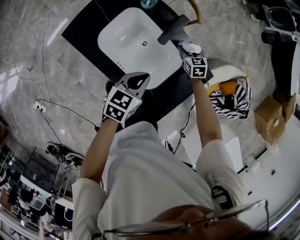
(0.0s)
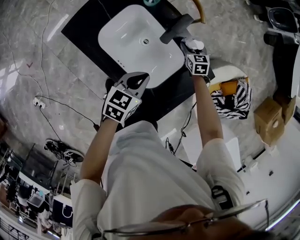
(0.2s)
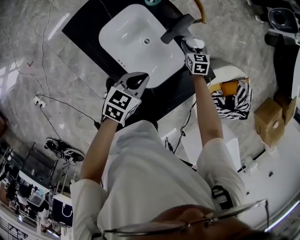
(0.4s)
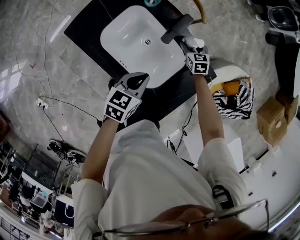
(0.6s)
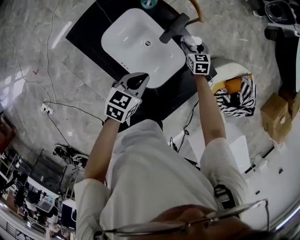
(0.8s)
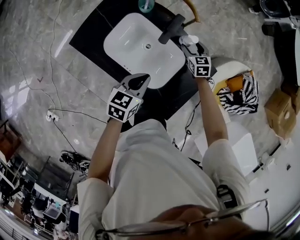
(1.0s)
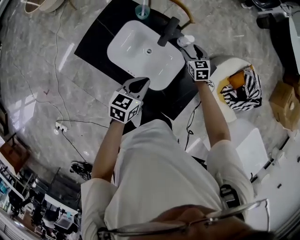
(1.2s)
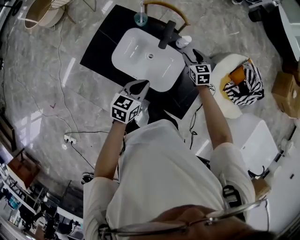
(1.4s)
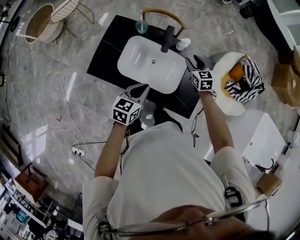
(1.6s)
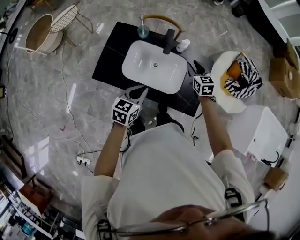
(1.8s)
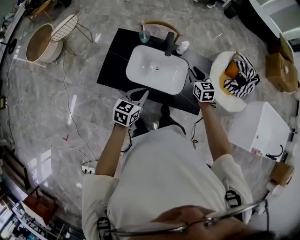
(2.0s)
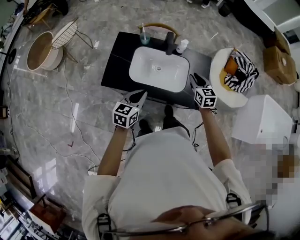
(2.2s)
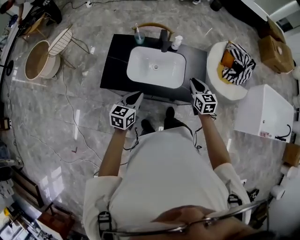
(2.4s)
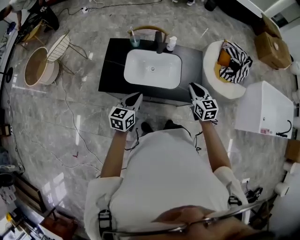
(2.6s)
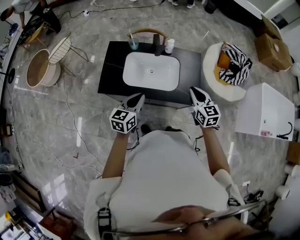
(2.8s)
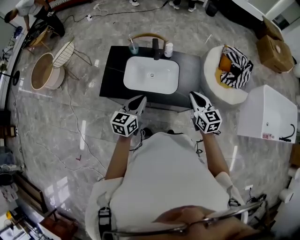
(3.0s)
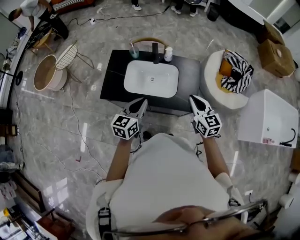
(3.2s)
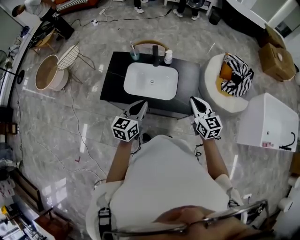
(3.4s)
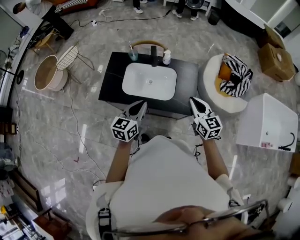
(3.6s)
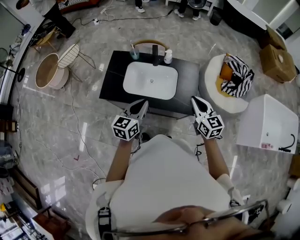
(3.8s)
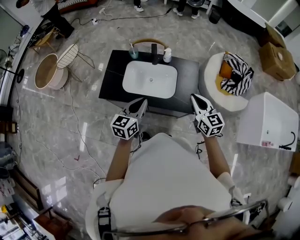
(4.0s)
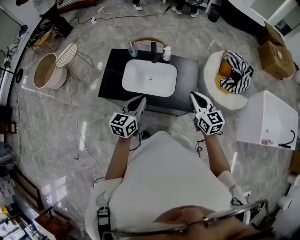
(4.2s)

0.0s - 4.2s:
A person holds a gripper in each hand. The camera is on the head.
0.0s - 1.4s: The left gripper goes some 5 cm upward, while the right gripper shifts roughly 15 cm upward and backward.
1.4s - 2.8s: The right gripper is displaced backward and upward by some 35 cm, swivels approximately 30 degrees, and closes up; the left gripper moves backward, upward and to the left, about 20 cm.
2.8s - 4.2s: The right gripper heads upward, covering approximately 5 cm; the left gripper moves upward and to the right, roughly 10 cm.

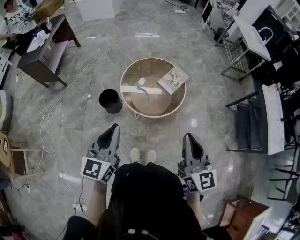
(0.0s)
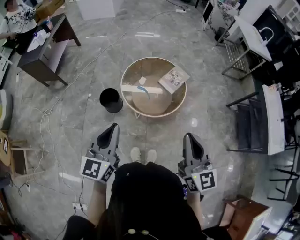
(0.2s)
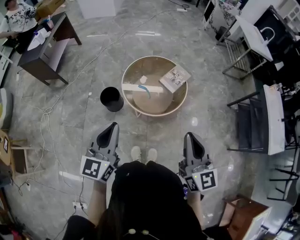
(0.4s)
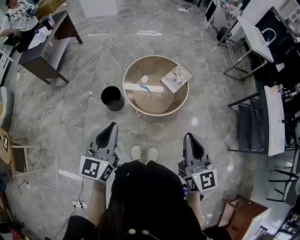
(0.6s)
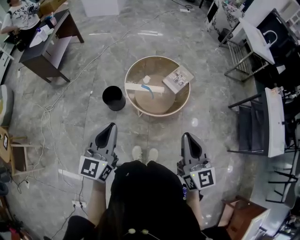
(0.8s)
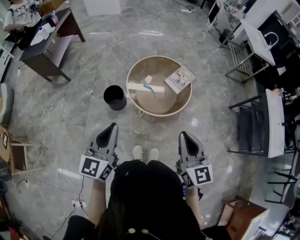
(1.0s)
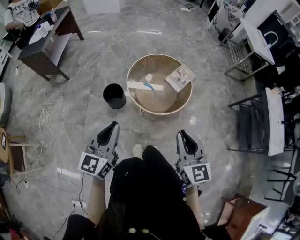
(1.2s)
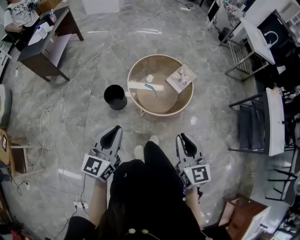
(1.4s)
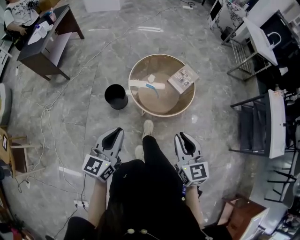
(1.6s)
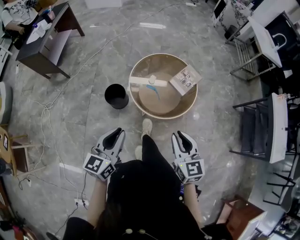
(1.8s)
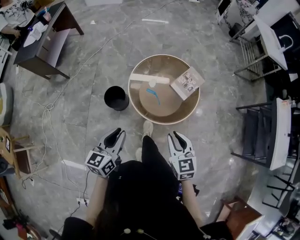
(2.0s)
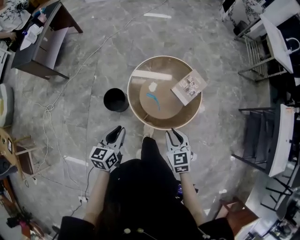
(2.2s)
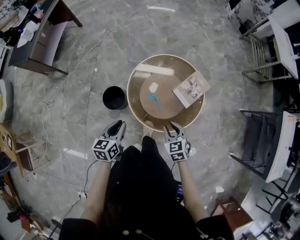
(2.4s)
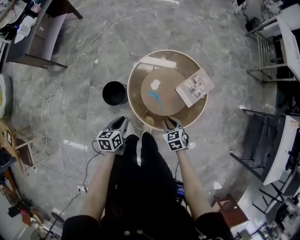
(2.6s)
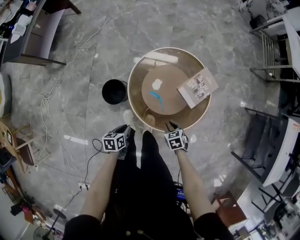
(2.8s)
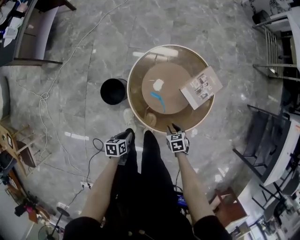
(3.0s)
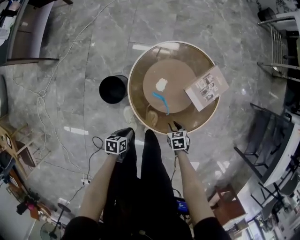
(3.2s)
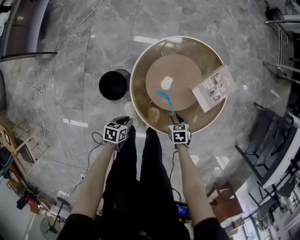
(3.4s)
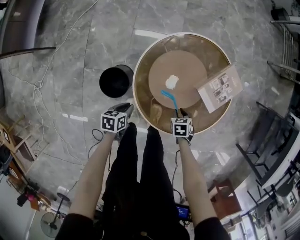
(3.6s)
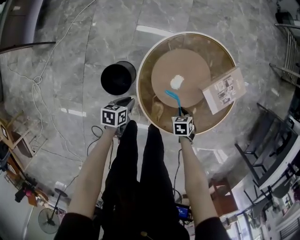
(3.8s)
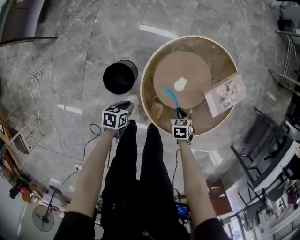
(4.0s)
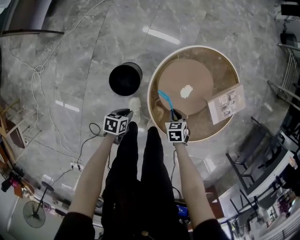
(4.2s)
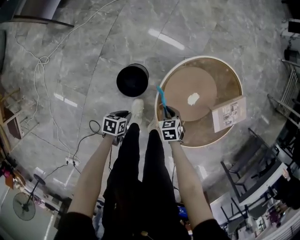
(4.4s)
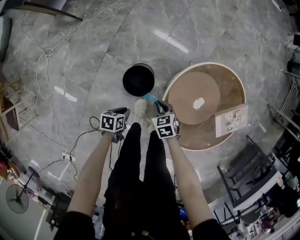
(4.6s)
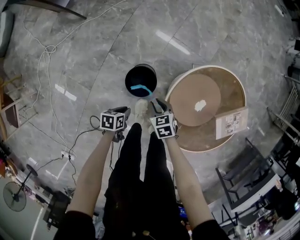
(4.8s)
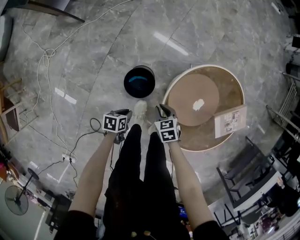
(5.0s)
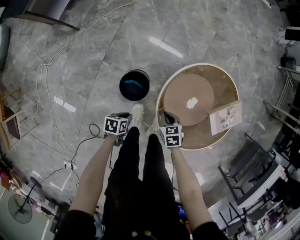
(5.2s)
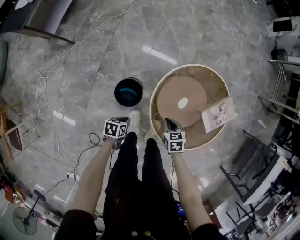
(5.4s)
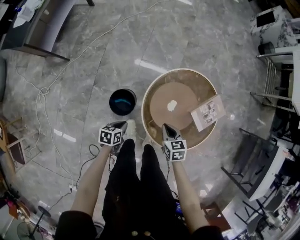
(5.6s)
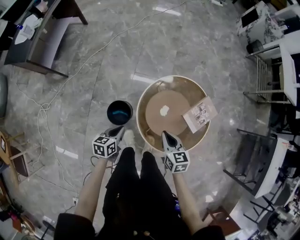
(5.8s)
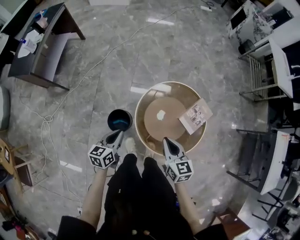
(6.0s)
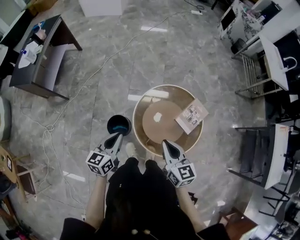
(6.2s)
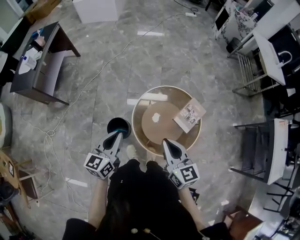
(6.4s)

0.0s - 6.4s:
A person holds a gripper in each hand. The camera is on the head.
0.0s - 1.6s: Both grippers travel together downward and to the left, about 10 cm.
1.6s - 3.2s: The right gripper moves downward and forward, about 50 cm, and points its fingers approximately 50 degrees further downward; the left gripper shifts some 50 cm downward, and angles its fingers downward, by approximately 50 degrees.
3.2s - 4.8s: The right gripper shifts by approximately 35 cm, and rotates approximately 30 degrees. Meanwhile the left gripper shifts by about 20 cm, and swivels approximately 20 degrees.
4.8s - 6.4s: The left gripper travels upward by about 50 cm, and tilts its fingers roughly 50 degrees upward. The right gripper goes approximately 50 cm upward and to the right, tilts its fingers some 40 degrees upward, and closes up.

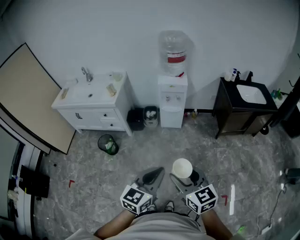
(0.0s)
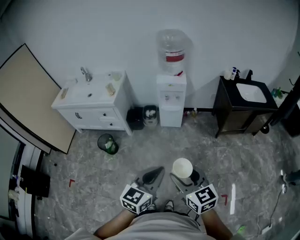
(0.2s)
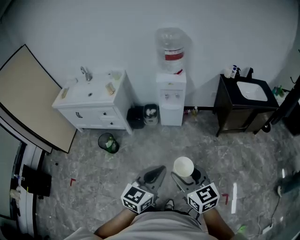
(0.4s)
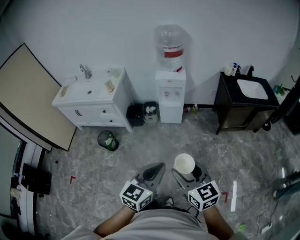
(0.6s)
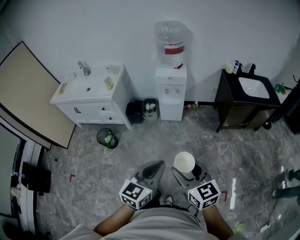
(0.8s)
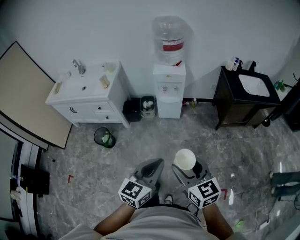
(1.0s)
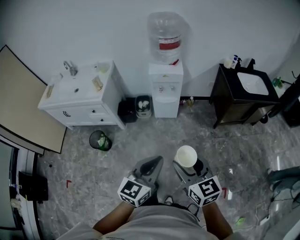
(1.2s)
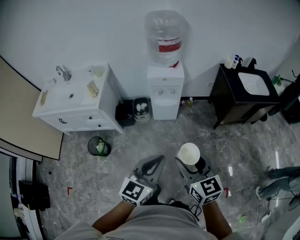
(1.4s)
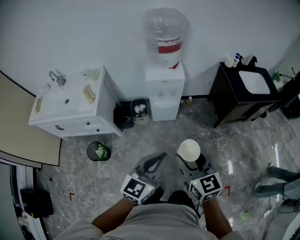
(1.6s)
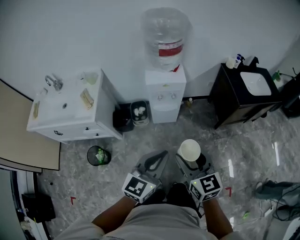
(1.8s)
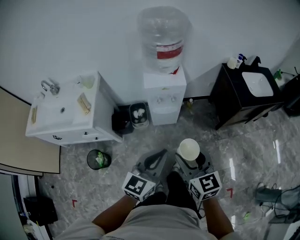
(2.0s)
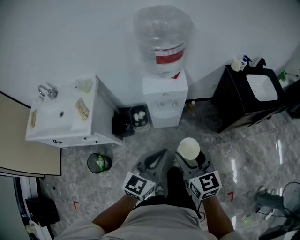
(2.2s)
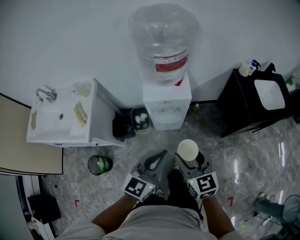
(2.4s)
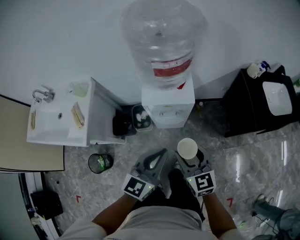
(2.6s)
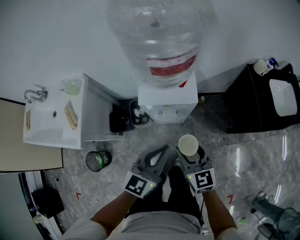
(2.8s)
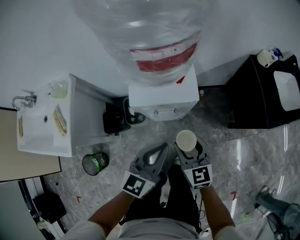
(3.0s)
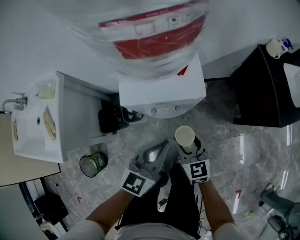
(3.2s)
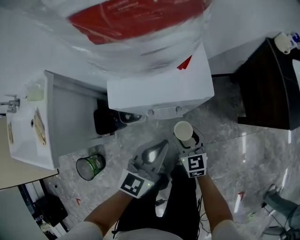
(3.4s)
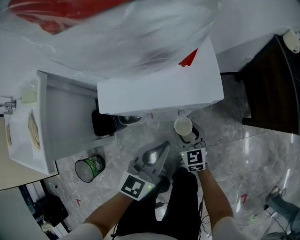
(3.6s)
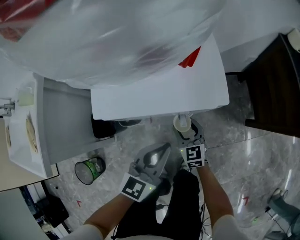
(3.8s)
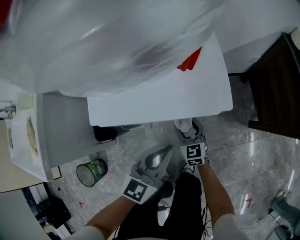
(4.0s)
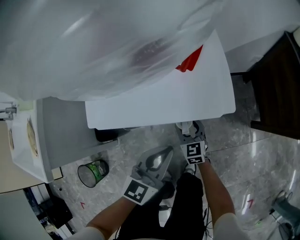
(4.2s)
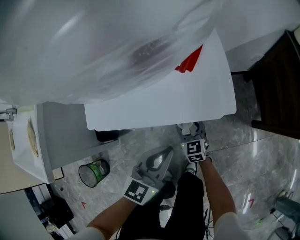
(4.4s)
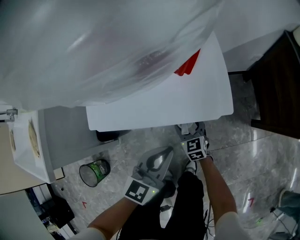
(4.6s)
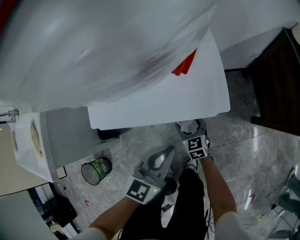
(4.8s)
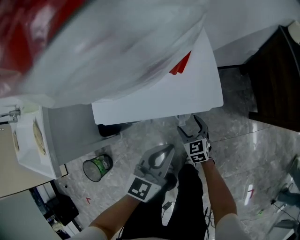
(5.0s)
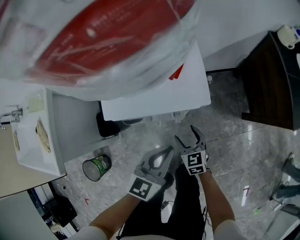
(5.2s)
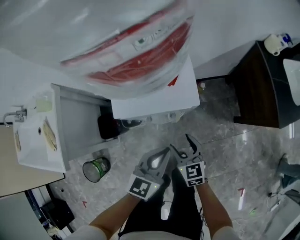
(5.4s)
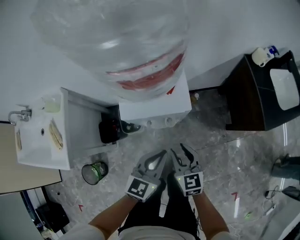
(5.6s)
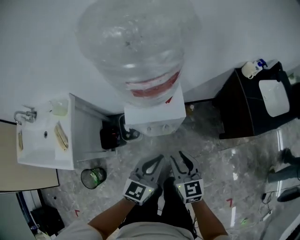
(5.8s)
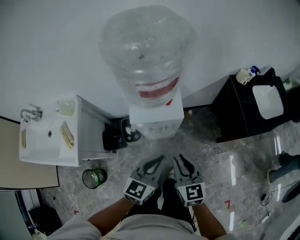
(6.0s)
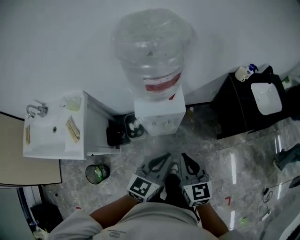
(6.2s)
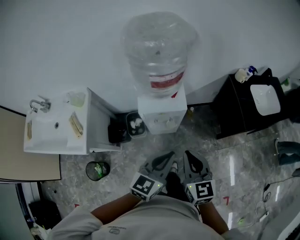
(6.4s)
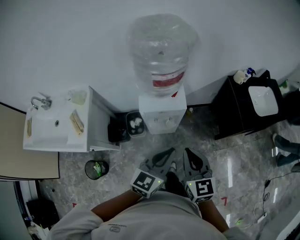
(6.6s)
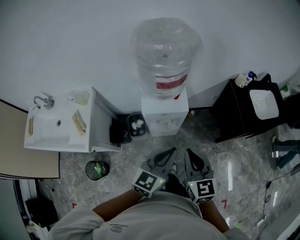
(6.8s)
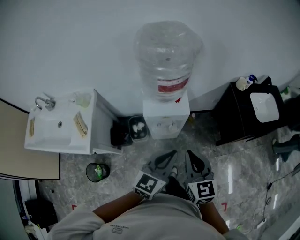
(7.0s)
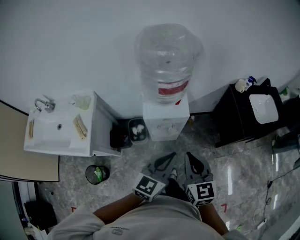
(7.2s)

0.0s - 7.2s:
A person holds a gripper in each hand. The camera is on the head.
0.0s - 1.4s: Both grippers travel together forward, some 25 cm.
1.4s - 2.8s: The two grippers travel together, forward, approximately 40 cm.
2.8s - 4.4s: Both grippers move downward, some 40 cm.
4.4s - 5.8s: The right gripper goes about 40 cm upward, and closes up. The left gripper is displaced upward by about 25 cm.
5.8s - 7.2s: Both grippers move upward and backward, about 20 cm. The right gripper closes up.

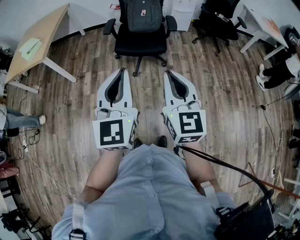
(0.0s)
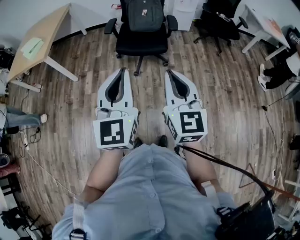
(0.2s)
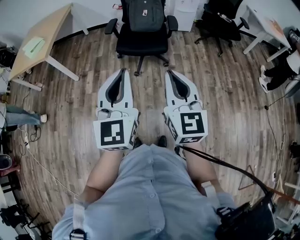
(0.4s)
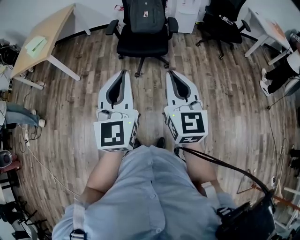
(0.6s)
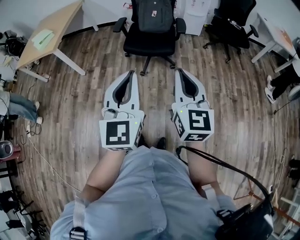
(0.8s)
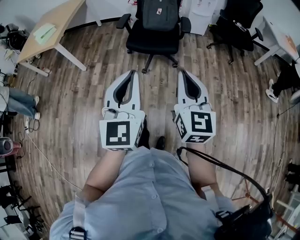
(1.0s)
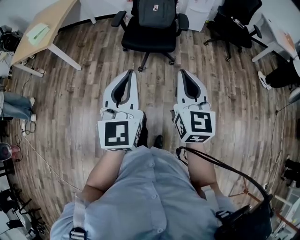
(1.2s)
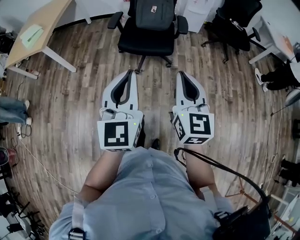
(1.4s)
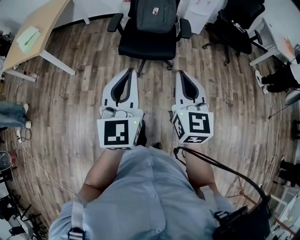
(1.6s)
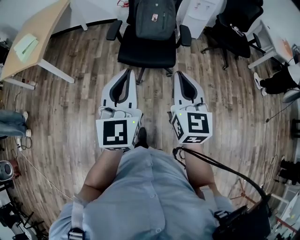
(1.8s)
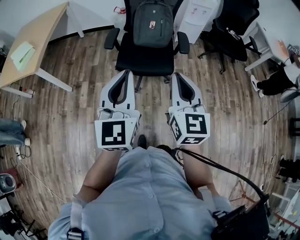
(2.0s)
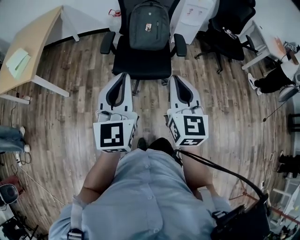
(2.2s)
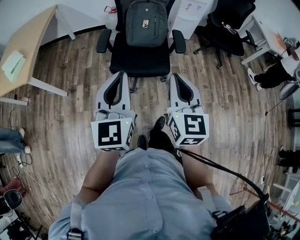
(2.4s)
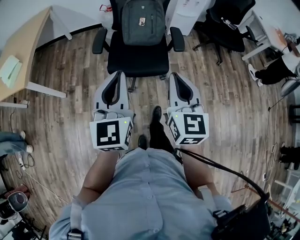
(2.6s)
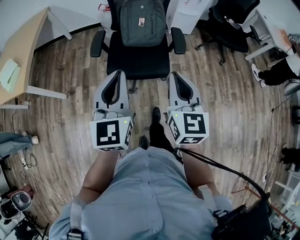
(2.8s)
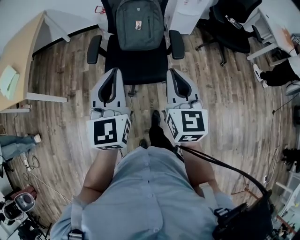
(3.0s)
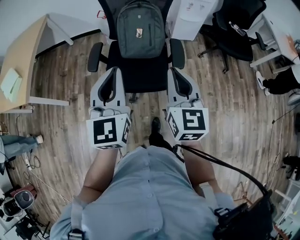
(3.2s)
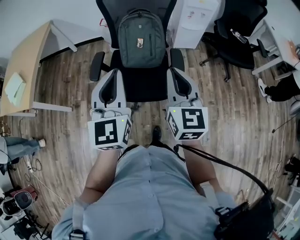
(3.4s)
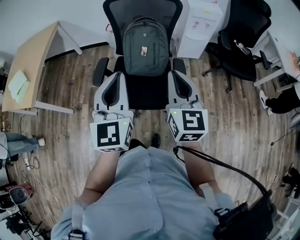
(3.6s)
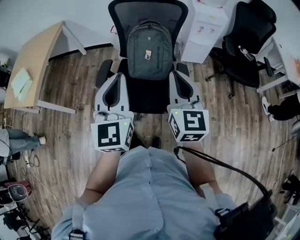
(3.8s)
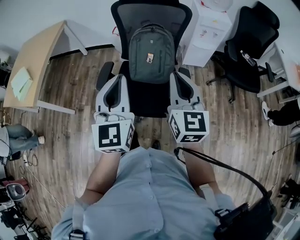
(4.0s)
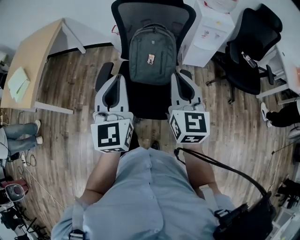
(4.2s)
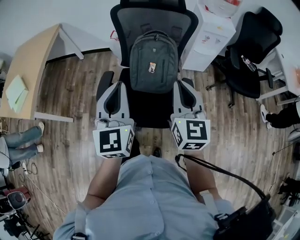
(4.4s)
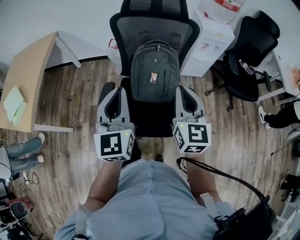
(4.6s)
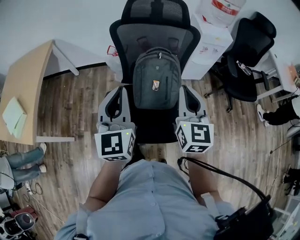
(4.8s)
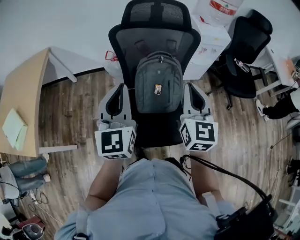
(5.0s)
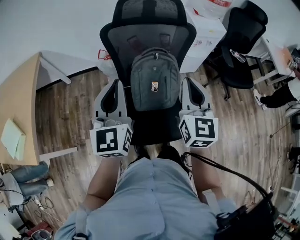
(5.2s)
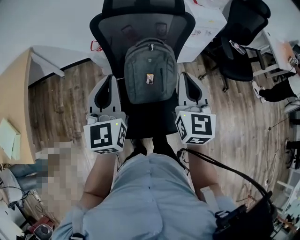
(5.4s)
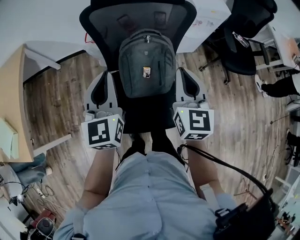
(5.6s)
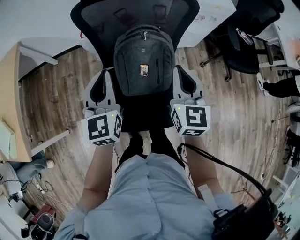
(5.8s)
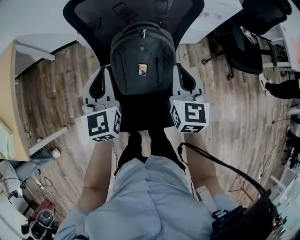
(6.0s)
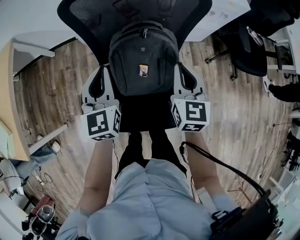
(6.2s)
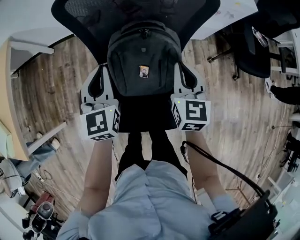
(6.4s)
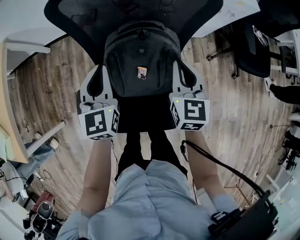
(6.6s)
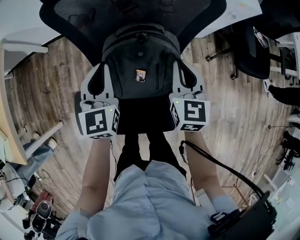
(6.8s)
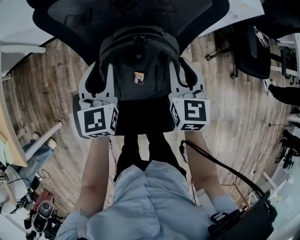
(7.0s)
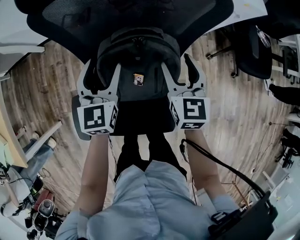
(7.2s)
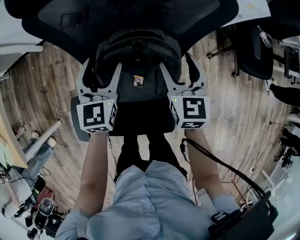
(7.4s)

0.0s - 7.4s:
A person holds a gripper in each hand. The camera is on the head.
0.0s - 1.4s: The two grippers go roughly 10 cm forward.
1.4s - 3.0s: Both grippers move forward, some 30 cm.
3.0s - 4.4s: Both grippers move forward, some 20 cm.
4.4s - 6.0s: The grippers both shift forward and downward by some 25 cm.
6.0s - 7.4s: The right gripper goes approximately 15 cm forward and downward, and opens. Meanwhile the left gripper is displaced downward and forward by roughly 15 cm, and opens up.
